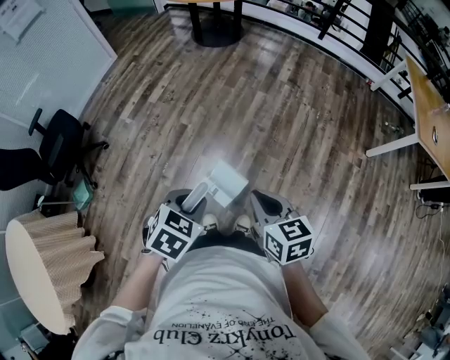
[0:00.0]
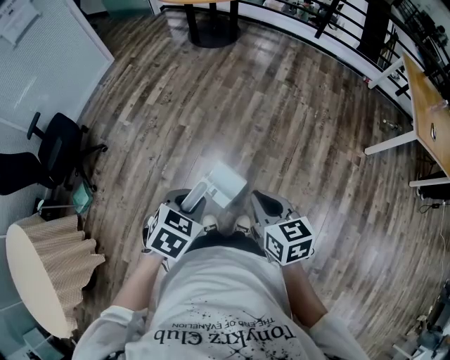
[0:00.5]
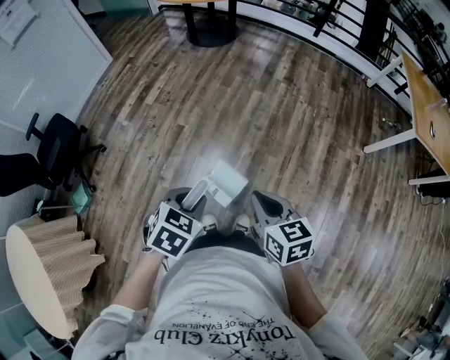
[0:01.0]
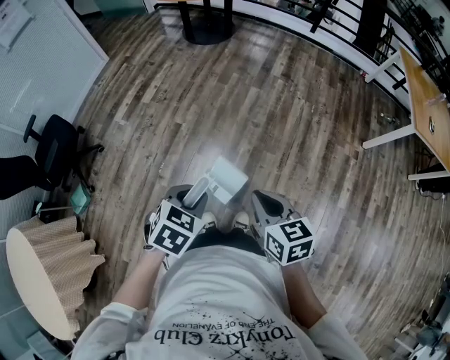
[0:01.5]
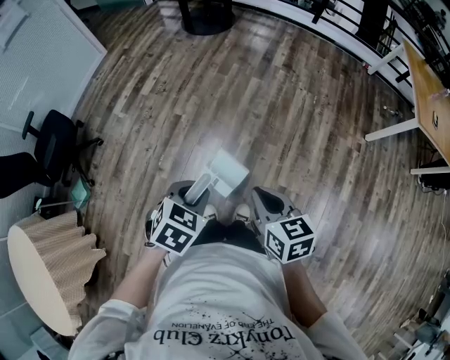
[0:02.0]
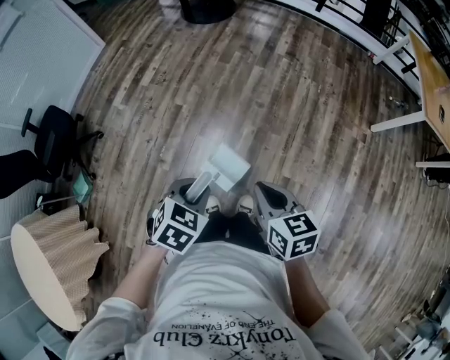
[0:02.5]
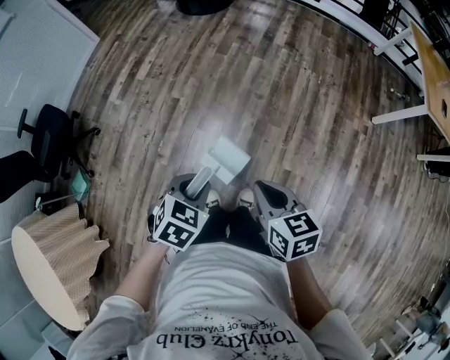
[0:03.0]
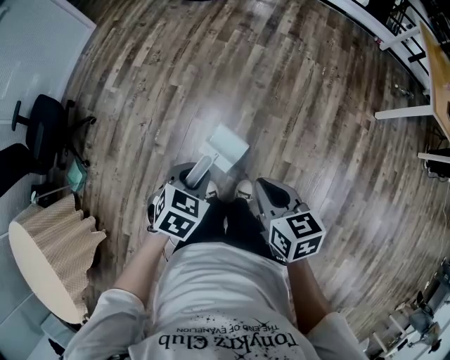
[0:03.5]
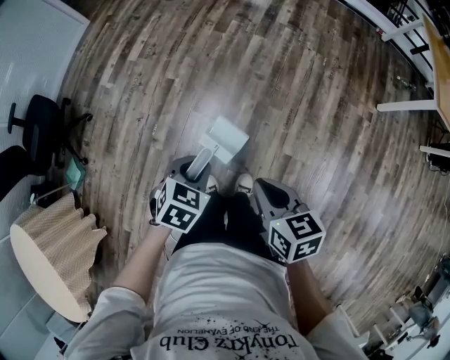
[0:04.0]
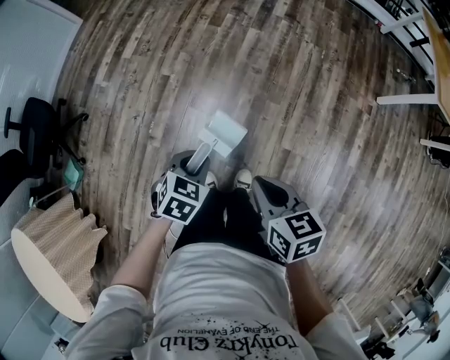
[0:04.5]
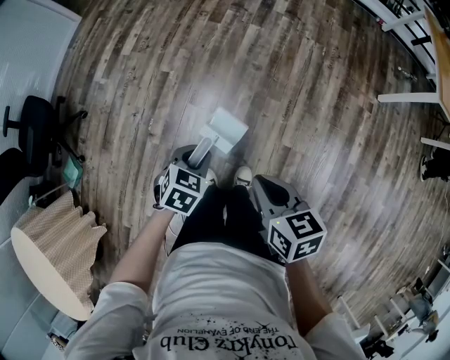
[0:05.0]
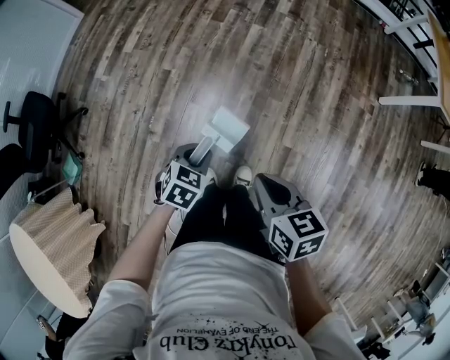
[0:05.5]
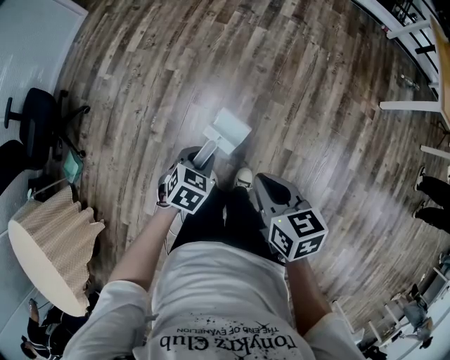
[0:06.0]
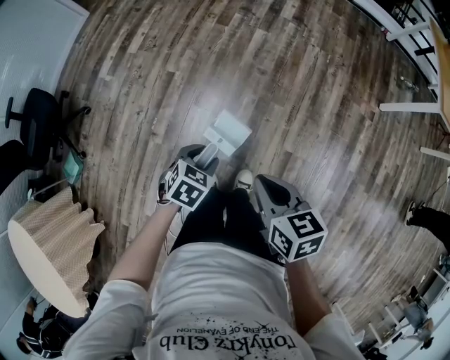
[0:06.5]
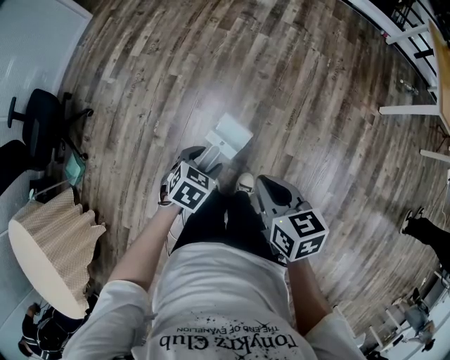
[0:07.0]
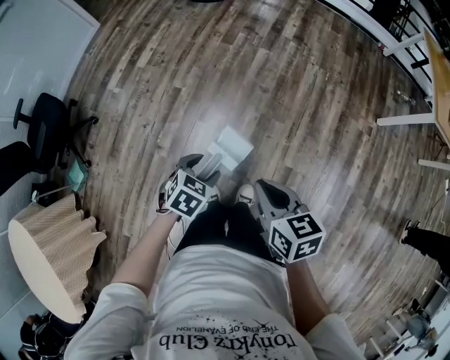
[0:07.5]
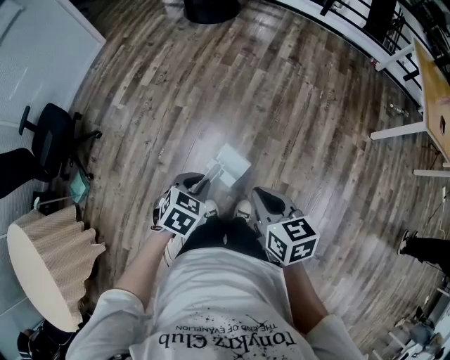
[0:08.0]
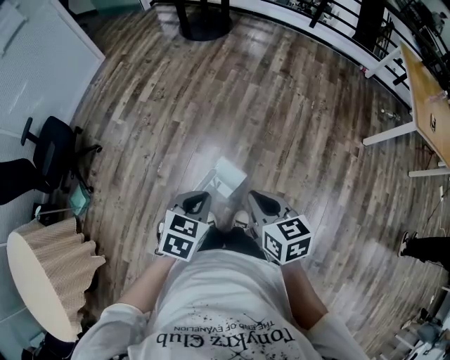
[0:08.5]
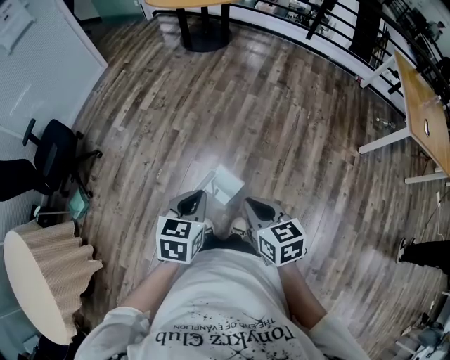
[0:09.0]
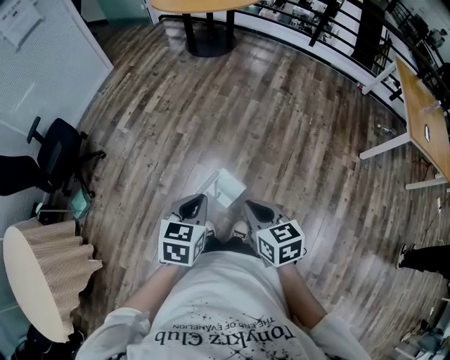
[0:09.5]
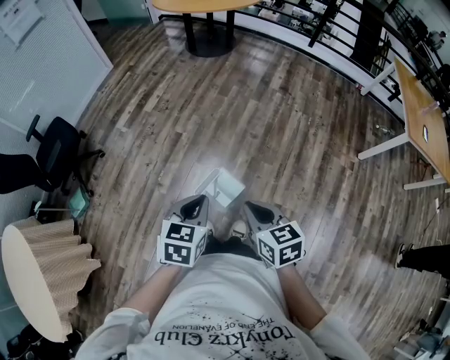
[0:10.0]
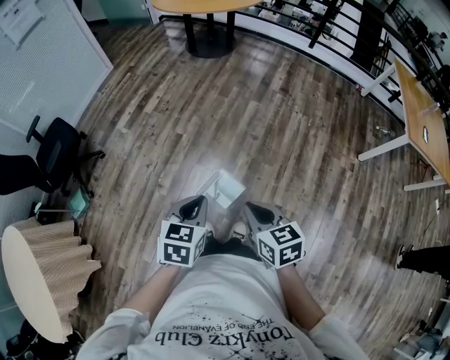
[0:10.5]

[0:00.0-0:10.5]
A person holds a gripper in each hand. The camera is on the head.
0:00.0 to 0:02.0: The grippers stay close to where they were, moving slightly.
0:02.0 to 0:04.0: The right gripper heads downward, covering about 5 cm. Meanwhile the left gripper shifts about 15 cm downward and forward.
0:04.0 to 0:06.5: The left gripper heads downward, covering approximately 10 cm, and opens.
0:06.5 to 0:08.5: The left gripper moves upward, roughly 20 cm, and closes up. Meanwhile the right gripper goes some 10 cm upward.
0:08.5 to 0:10.5: The left gripper ends up about 5 cm from where it was; the right gripper changes place by about 5 cm.

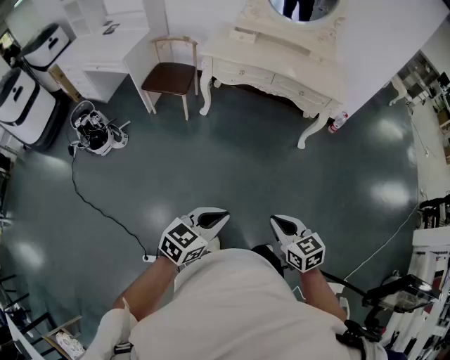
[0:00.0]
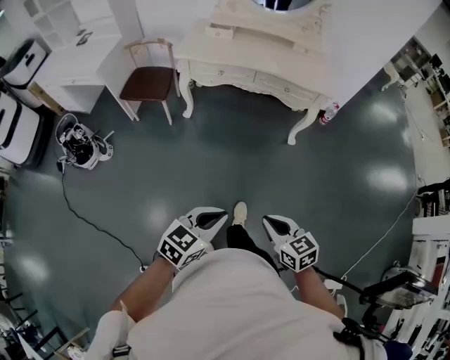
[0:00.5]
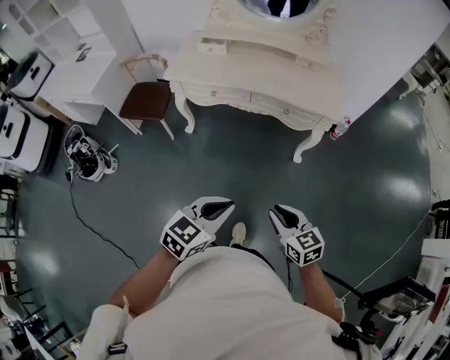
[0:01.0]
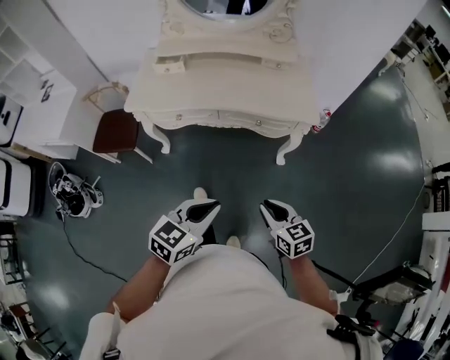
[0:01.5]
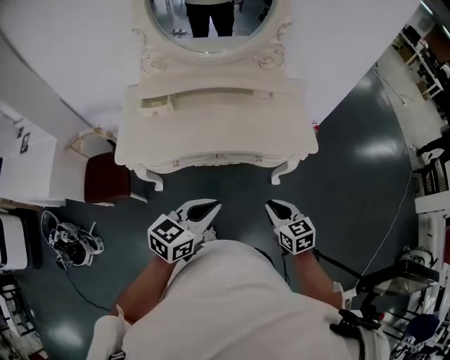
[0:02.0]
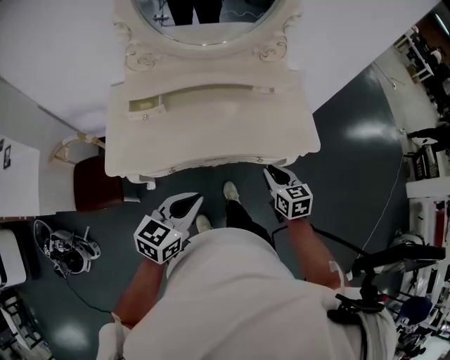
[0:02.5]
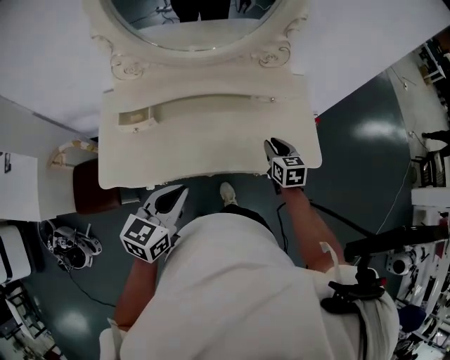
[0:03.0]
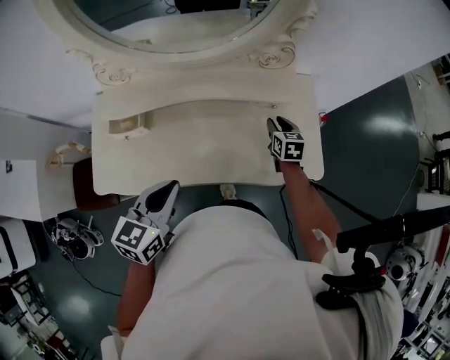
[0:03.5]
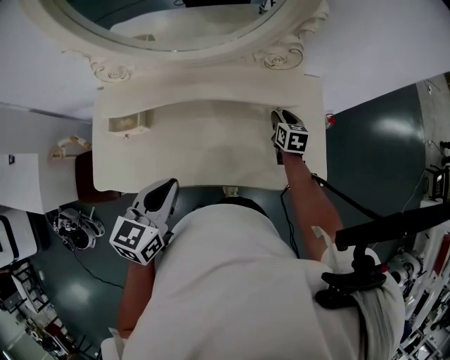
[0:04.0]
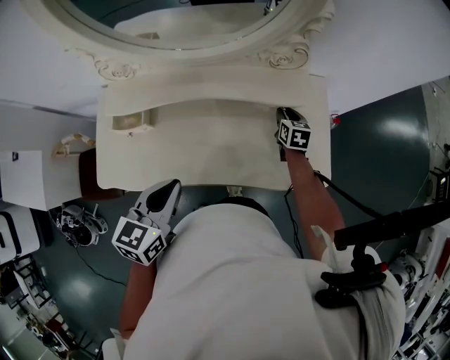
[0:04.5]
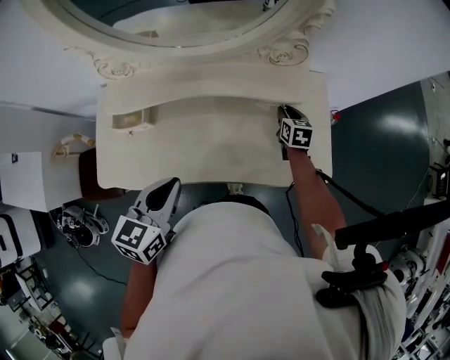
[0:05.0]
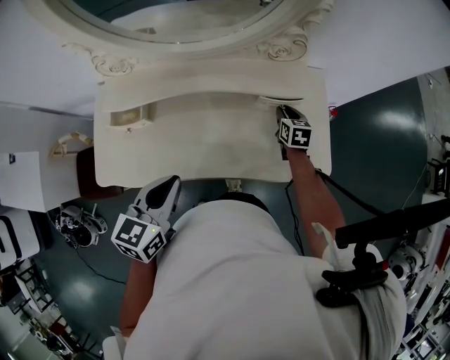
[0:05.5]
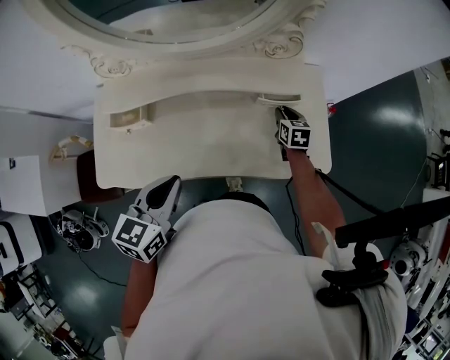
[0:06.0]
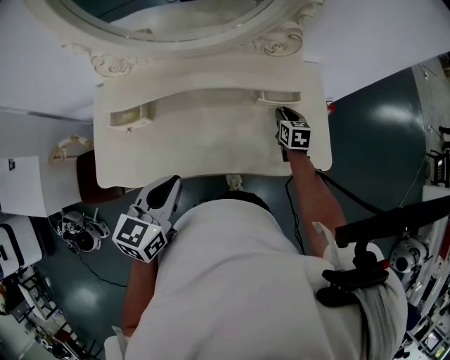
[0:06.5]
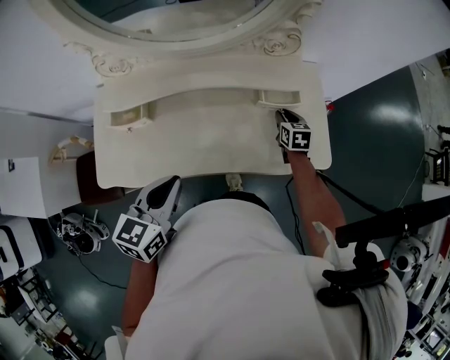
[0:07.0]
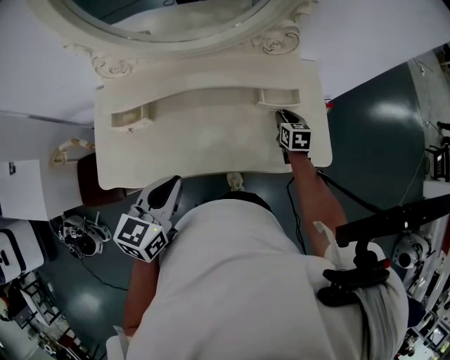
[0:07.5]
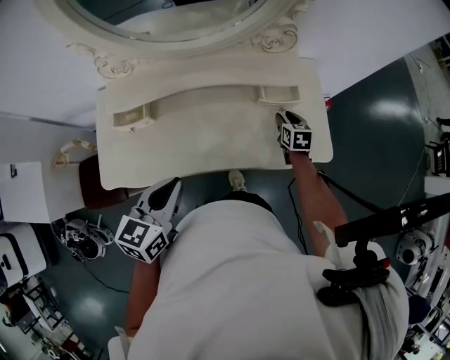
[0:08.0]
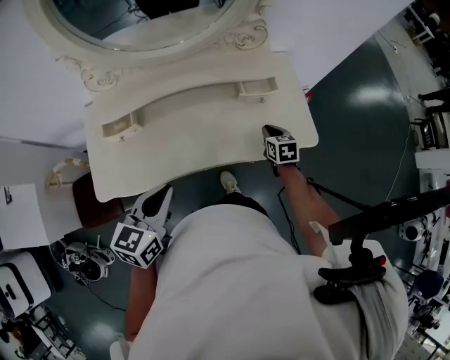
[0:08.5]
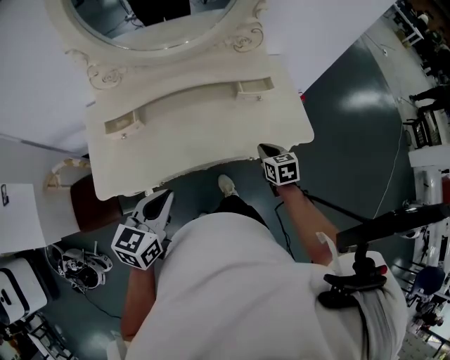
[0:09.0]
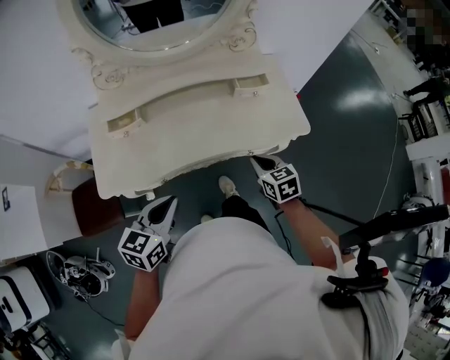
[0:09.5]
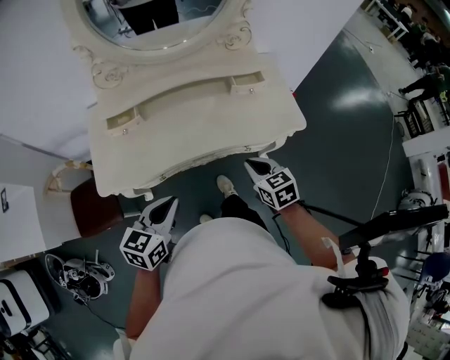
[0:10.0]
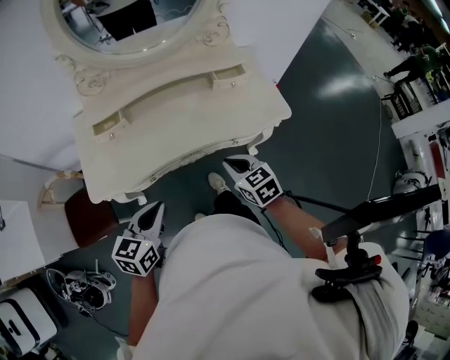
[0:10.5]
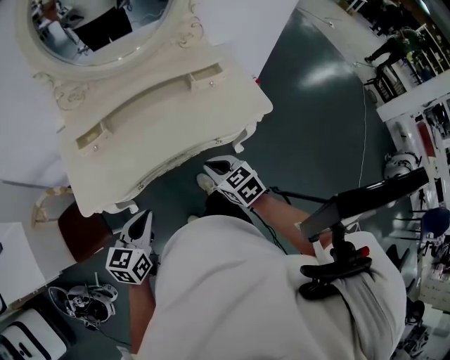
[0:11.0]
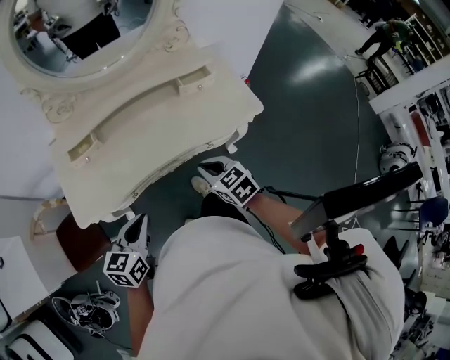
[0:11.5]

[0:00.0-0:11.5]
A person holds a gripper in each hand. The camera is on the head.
0:00.0 to 0:02.0: The pair of grippers is taken forward, approximately 70 cm. The right gripper rotates about 20 degrees.
0:02.0 to 0:04.0: The right gripper travels forward by approximately 60 cm, swivels approximately 20 degrees, and opens up. Meanwhile the left gripper heads forward, covering approximately 30 cm, and swivels roughly 20 degrees.
0:04.0 to 0:06.0: There are only small adjustments of the grippers.
0:06.0 to 0:07.5: The grippers move only a little.
0:07.5 to 0:09.5: The left gripper is displaced backward by some 15 cm, while the right gripper is displaced backward by approximately 30 cm, and closes up.
0:09.5 to 0:11.5: The right gripper is displaced to the left and backward by about 5 cm.

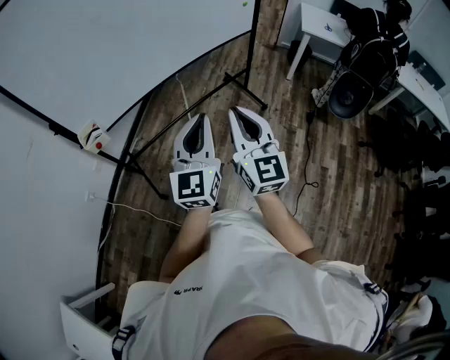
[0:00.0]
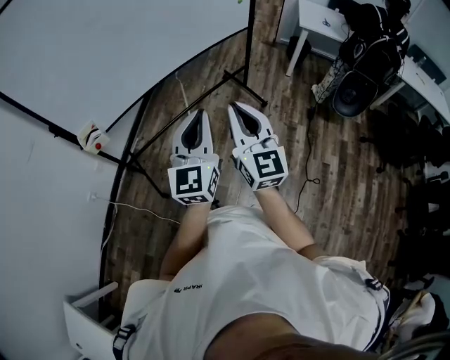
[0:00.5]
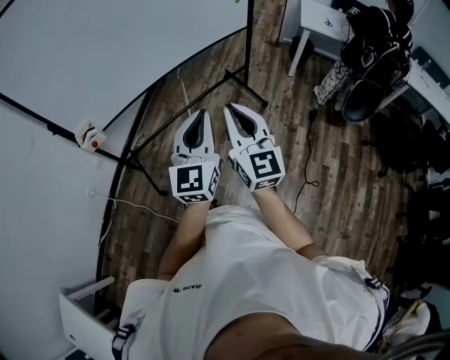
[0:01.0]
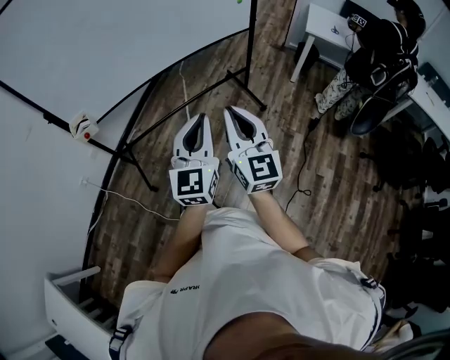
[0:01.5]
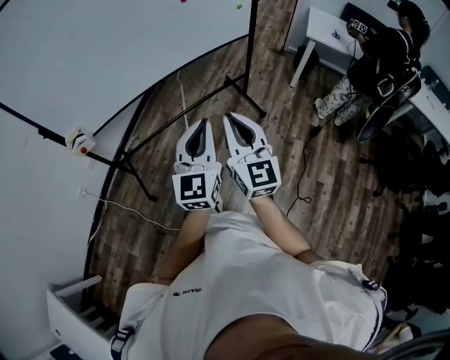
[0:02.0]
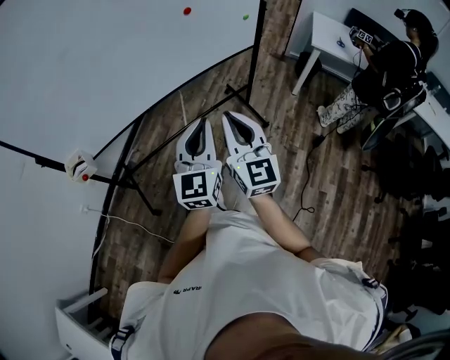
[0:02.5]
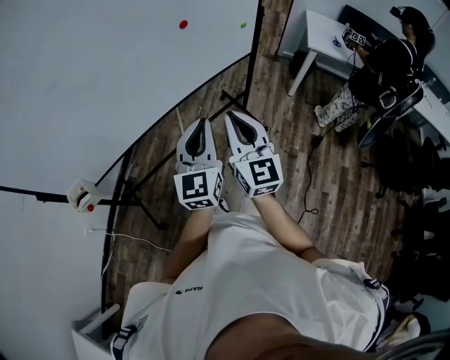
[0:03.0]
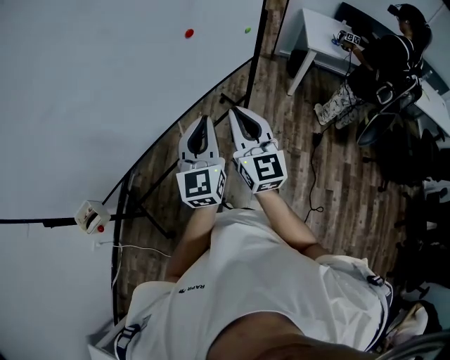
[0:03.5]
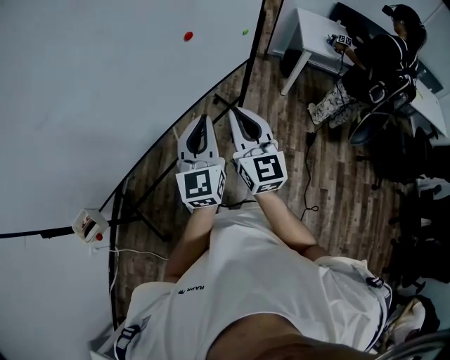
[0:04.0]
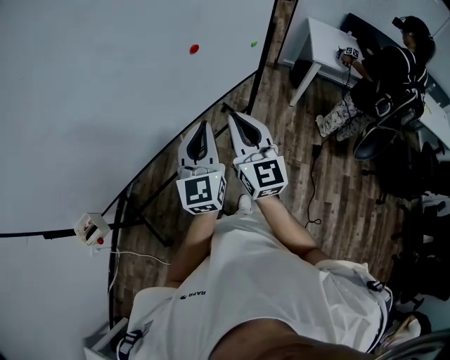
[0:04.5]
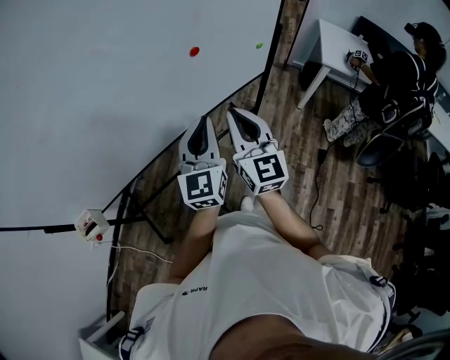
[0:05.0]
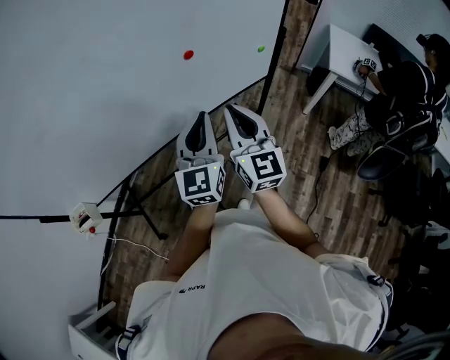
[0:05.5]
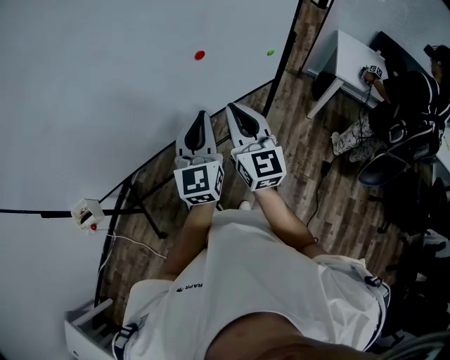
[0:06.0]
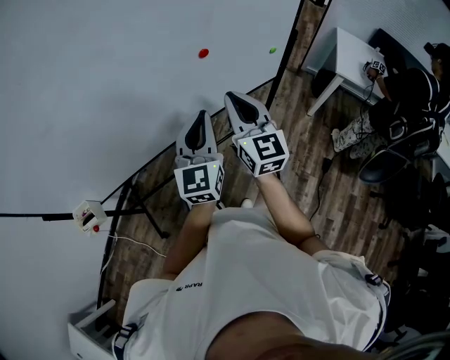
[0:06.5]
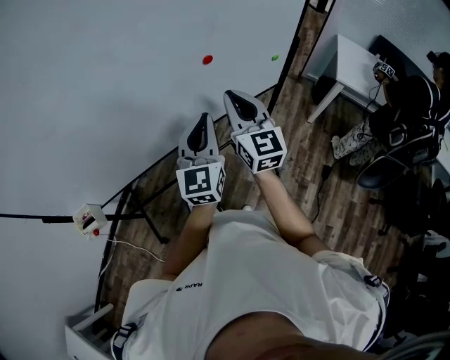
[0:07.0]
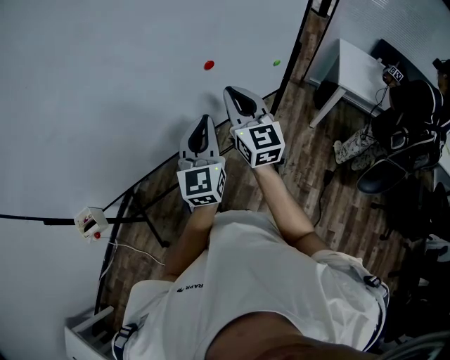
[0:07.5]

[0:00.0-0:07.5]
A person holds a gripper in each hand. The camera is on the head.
0:00.0 to 0:02.0: The grippers both shift to the right and forward by some 10 cm.
0:02.0 to 0:04.0: The two grippers go roughly 30 cm forward.
0:04.0 to 0:05.5: Both grippers travel together forward, about 10 cm.
0:05.5 to 0:07.5: The left gripper moves some 5 cm; the right gripper heads forward, covering some 10 cm.
